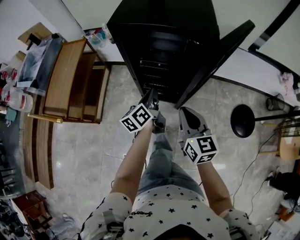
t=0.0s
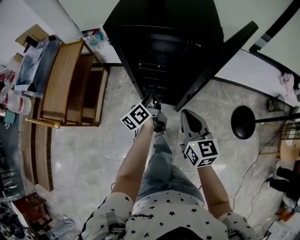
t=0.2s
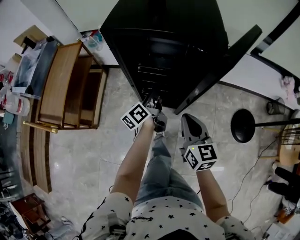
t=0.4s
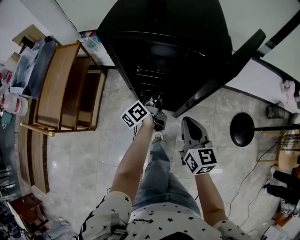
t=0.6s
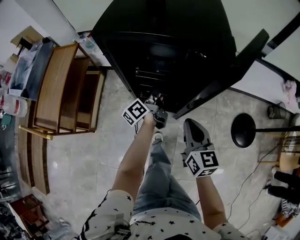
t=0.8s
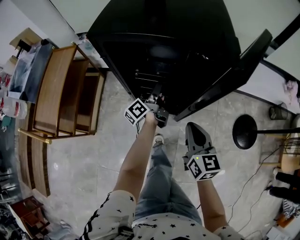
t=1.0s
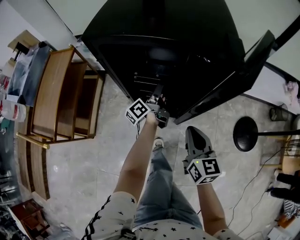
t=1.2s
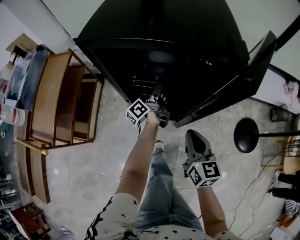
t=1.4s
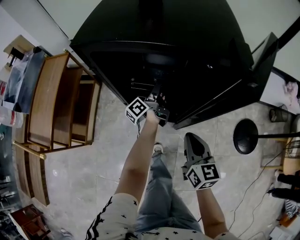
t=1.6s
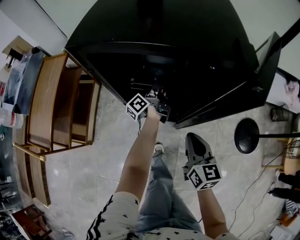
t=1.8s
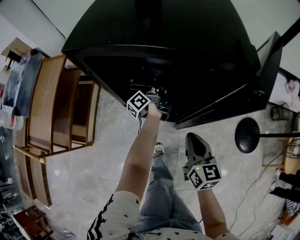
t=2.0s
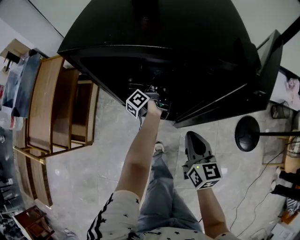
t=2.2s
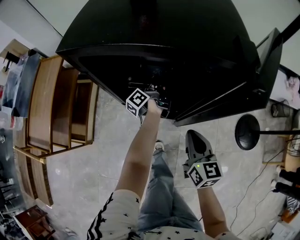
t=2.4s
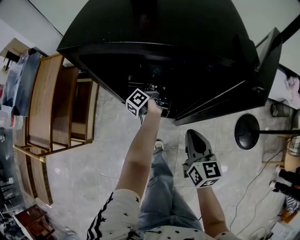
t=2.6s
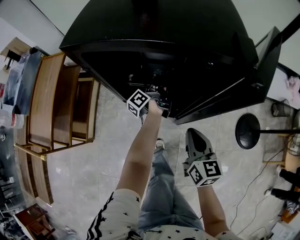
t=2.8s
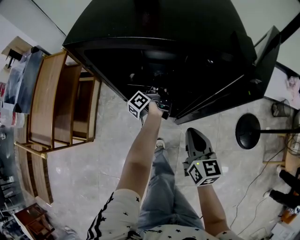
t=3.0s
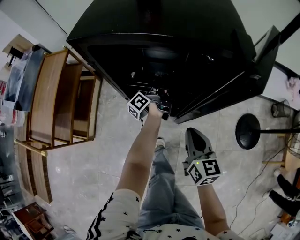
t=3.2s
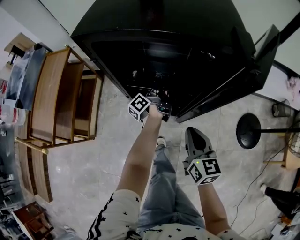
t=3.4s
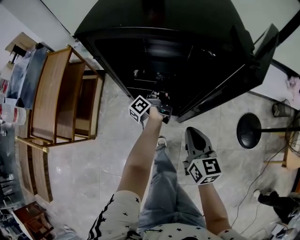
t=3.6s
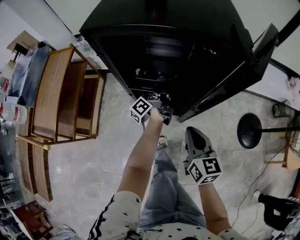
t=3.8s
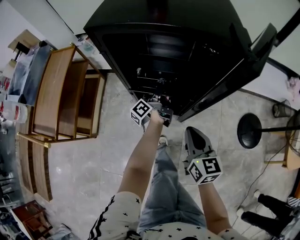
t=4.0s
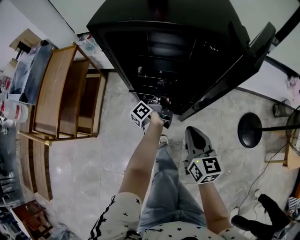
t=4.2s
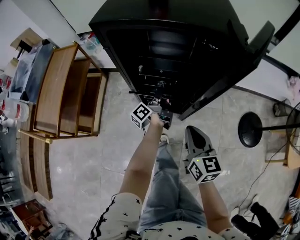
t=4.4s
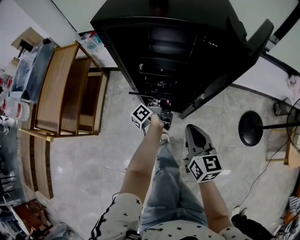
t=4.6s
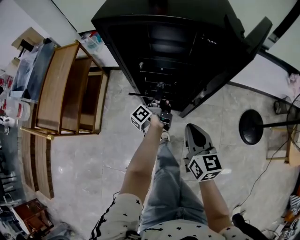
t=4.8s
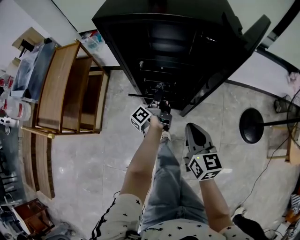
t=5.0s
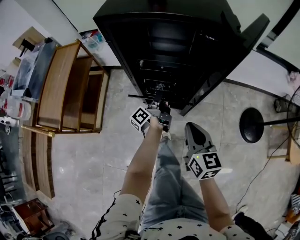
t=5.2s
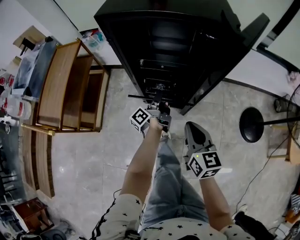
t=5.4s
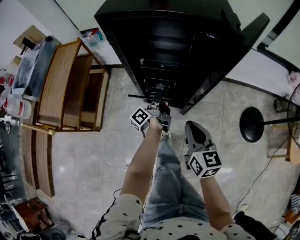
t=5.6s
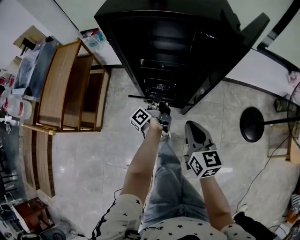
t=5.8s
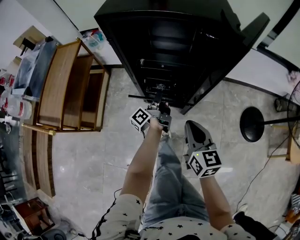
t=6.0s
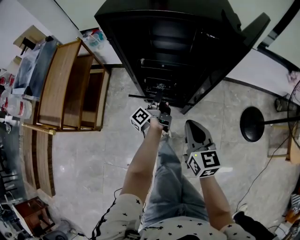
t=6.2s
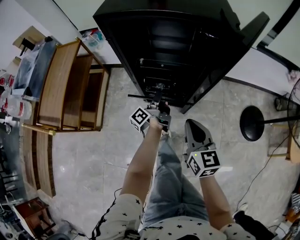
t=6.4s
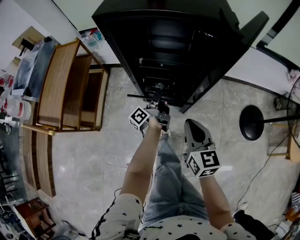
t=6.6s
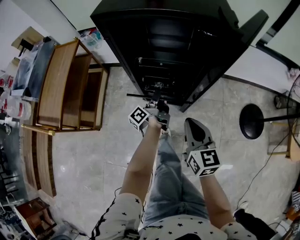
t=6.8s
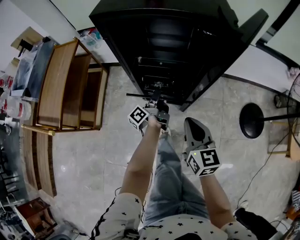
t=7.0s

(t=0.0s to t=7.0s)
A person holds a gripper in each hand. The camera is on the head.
t=0.0s - t=1.4s: The right gripper shifts roughly 15 cm downward and forward. Meanwhile the left gripper is displaced forward and downward by roughly 25 cm, changes its angle by some 30 degrees, and opens.
t=1.4s - t=2.8s: The left gripper shifts about 5 cm forward, and closes.
t=2.8s - t=4.2s: The left gripper heads backward, covering some 10 cm, while the right gripper travels backward by roughly 5 cm.
t=4.2s - t=5.6s: The left gripper shifts about 10 cm backward.
t=5.6s - t=7.0s: Both grippers stay put.

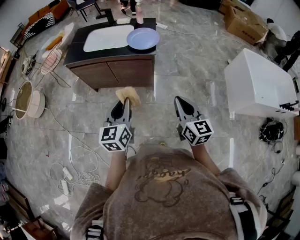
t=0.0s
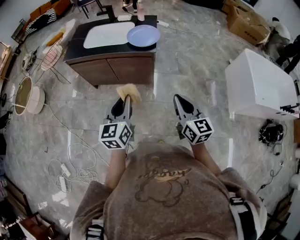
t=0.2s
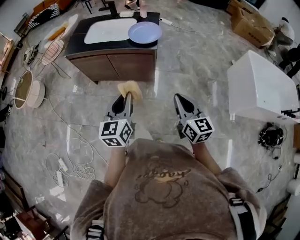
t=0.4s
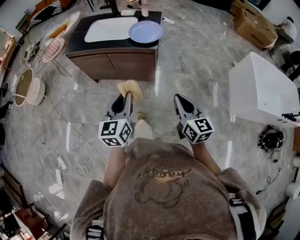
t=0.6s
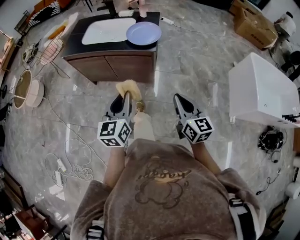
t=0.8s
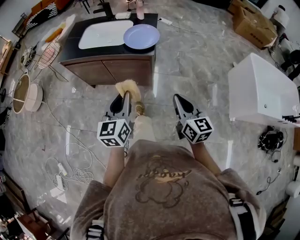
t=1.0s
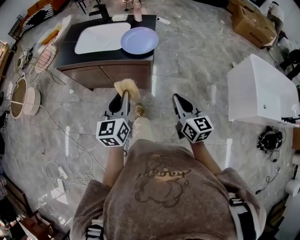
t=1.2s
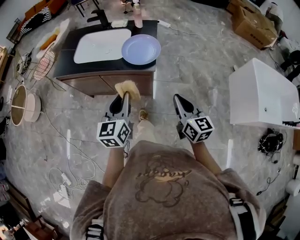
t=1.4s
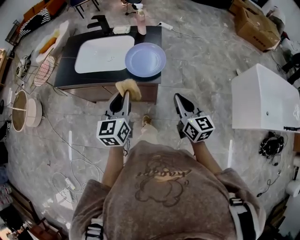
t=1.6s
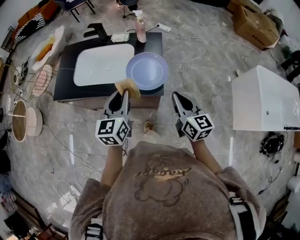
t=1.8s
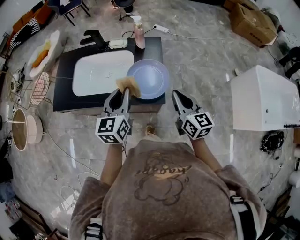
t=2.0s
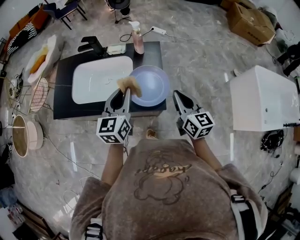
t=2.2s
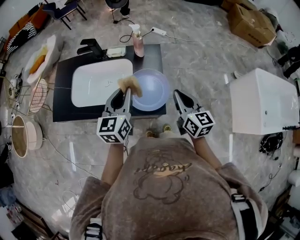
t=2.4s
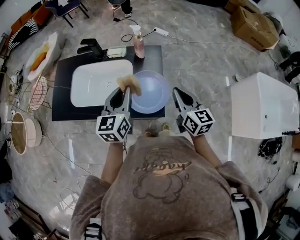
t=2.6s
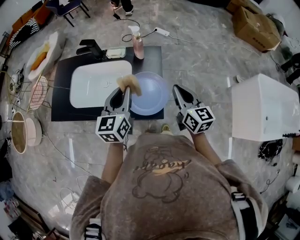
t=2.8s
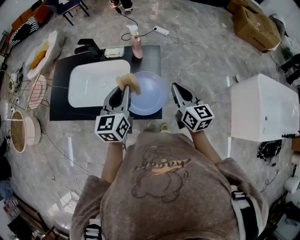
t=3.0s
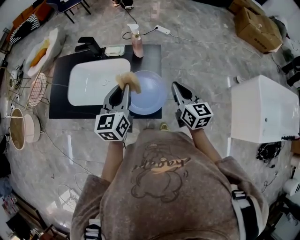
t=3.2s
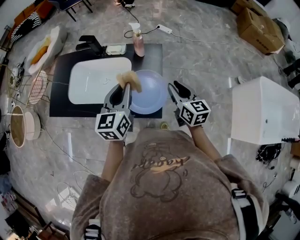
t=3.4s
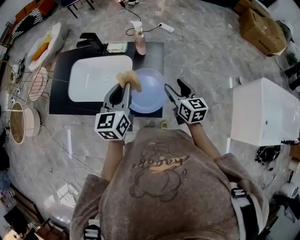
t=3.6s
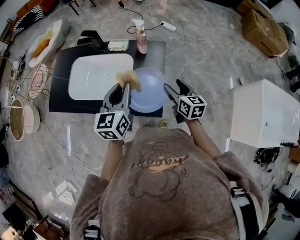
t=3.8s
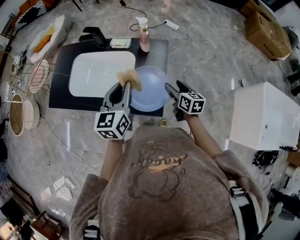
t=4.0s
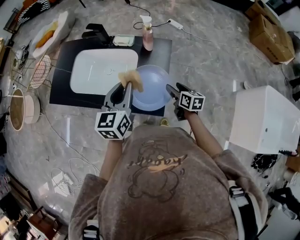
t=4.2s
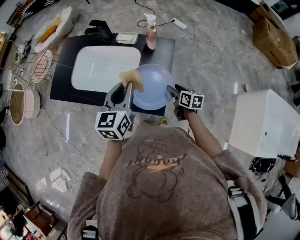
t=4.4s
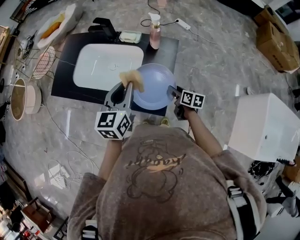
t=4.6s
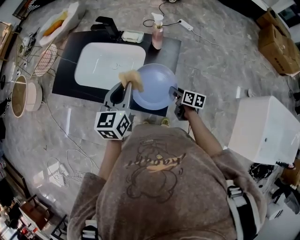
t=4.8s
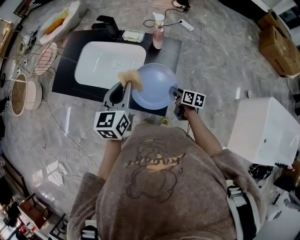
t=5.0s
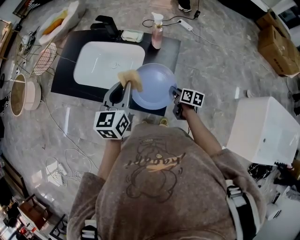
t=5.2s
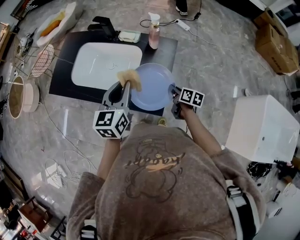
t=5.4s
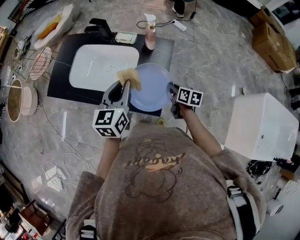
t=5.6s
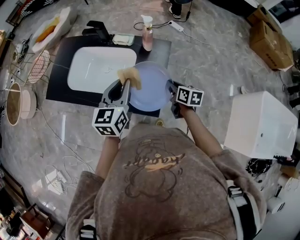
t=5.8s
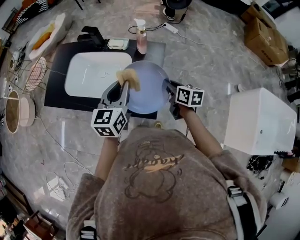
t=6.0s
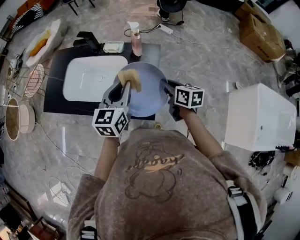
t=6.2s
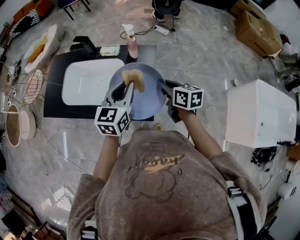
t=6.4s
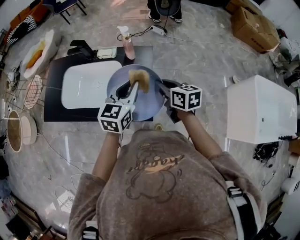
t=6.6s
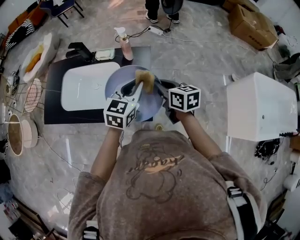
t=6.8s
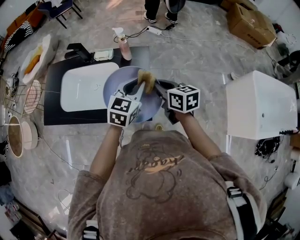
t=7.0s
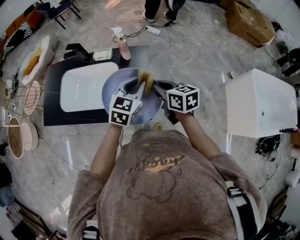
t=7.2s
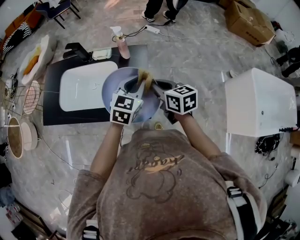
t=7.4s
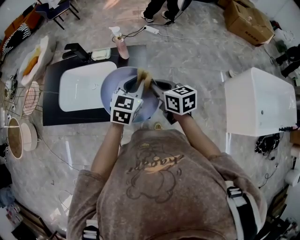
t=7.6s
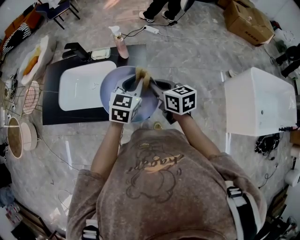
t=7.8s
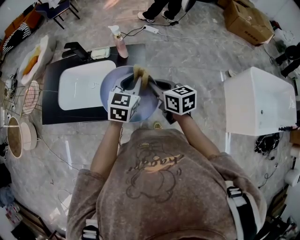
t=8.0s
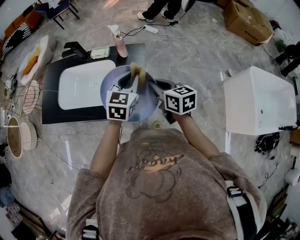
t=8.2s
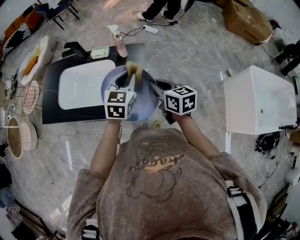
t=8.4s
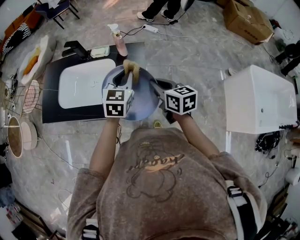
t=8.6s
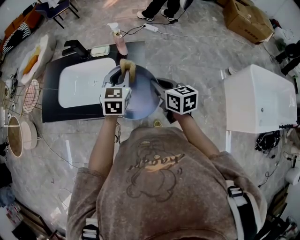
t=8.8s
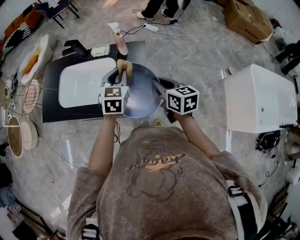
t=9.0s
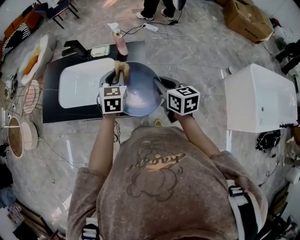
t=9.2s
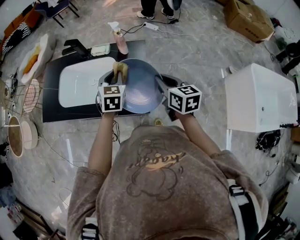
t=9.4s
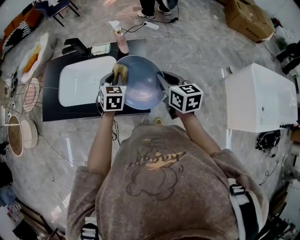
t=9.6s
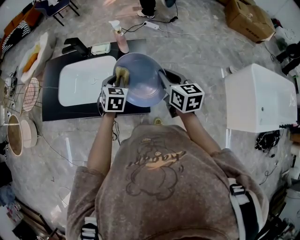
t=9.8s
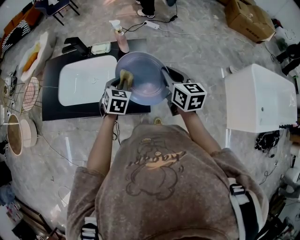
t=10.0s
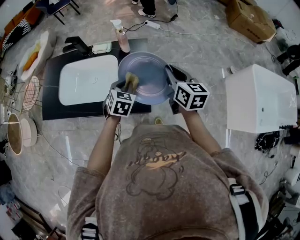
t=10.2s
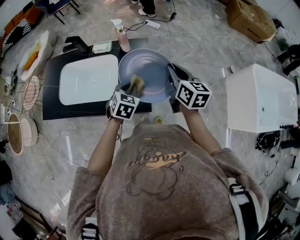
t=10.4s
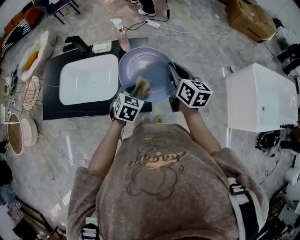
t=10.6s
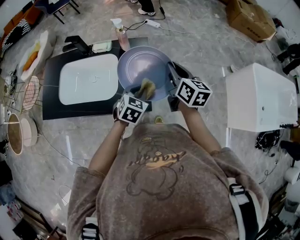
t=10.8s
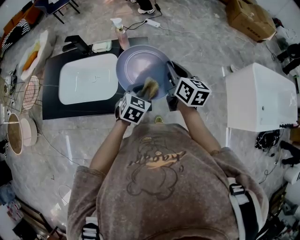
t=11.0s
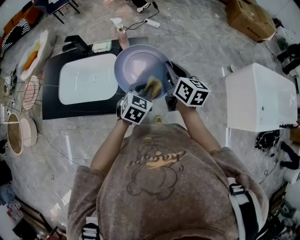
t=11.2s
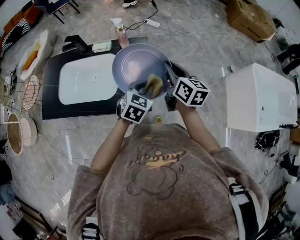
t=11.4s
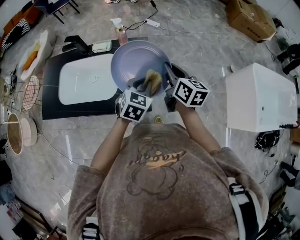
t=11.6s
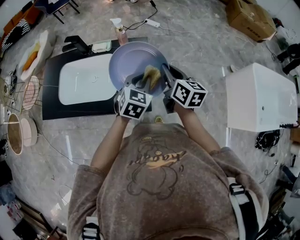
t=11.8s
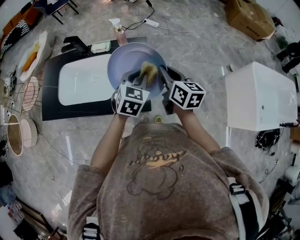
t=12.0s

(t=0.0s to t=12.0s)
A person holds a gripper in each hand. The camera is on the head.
t=0.0s - t=1.6s: Both grippers travel together forward, approximately 35 cm.
t=1.6s - t=3.0s: The two grippers go about 25 cm forward.
t=3.0s - t=4.4s: The right gripper shifts some 20 cm downward, changes its angle by approximately 30 degrees, and opens up.
t=4.4s - t=6.0s: The right gripper heads upward, covering roughly 10 cm, and closes.
t=6.0s - t=7.6s: The left gripper travels to the right by approximately 15 cm, and rotates about 30 degrees. The right gripper is displaced upward by some 10 cm.
t=7.6s - t=9.0s: The left gripper is displaced to the left by some 5 cm.
t=9.0s - t=10.4s: The right gripper goes about 5 cm to the right, while the left gripper travels downward and backward by approximately 10 cm, and swivels about 20 degrees.
t=10.4s - t=12.0s: The left gripper is displaced upward and to the right by about 10 cm.

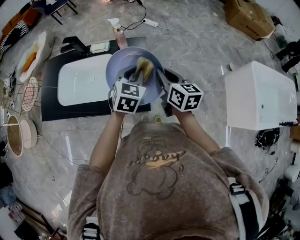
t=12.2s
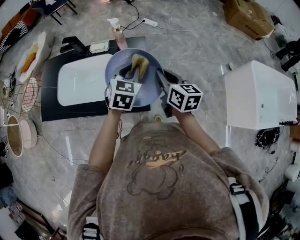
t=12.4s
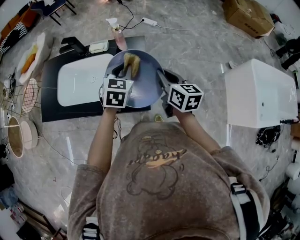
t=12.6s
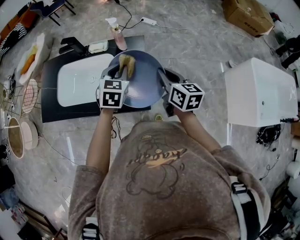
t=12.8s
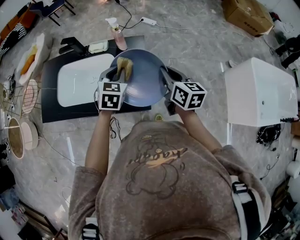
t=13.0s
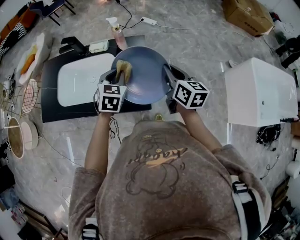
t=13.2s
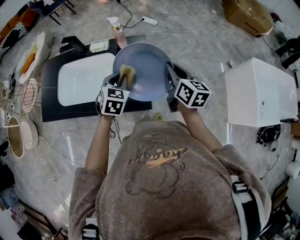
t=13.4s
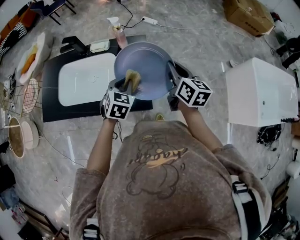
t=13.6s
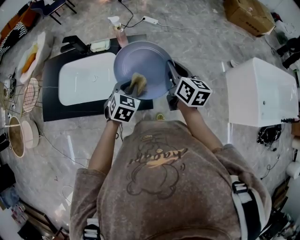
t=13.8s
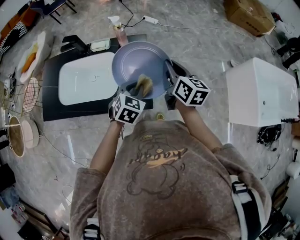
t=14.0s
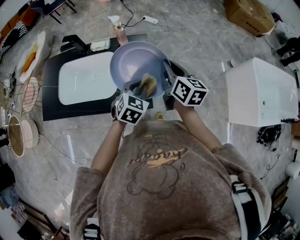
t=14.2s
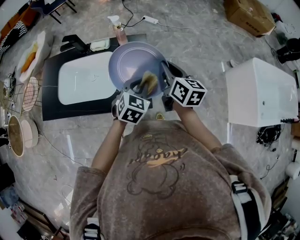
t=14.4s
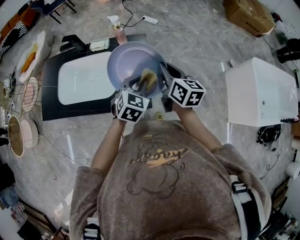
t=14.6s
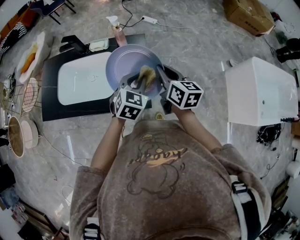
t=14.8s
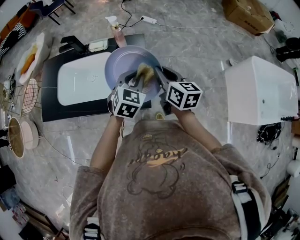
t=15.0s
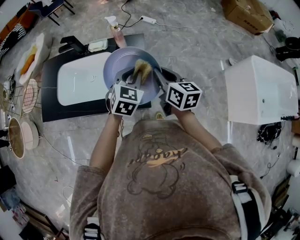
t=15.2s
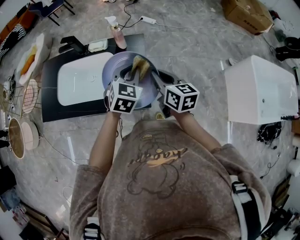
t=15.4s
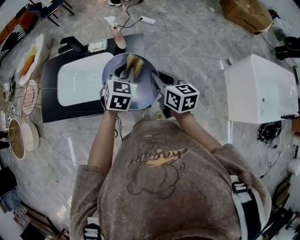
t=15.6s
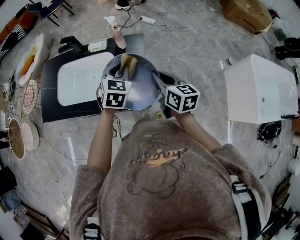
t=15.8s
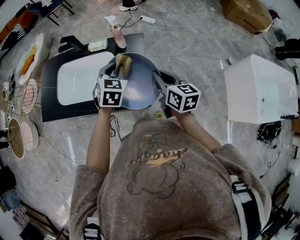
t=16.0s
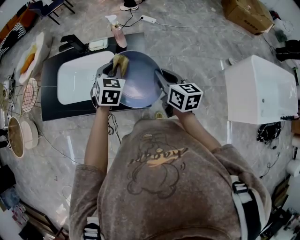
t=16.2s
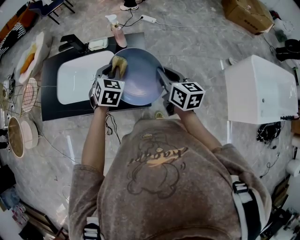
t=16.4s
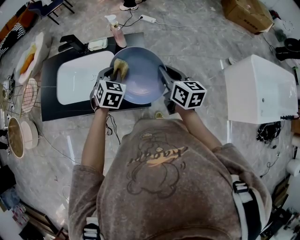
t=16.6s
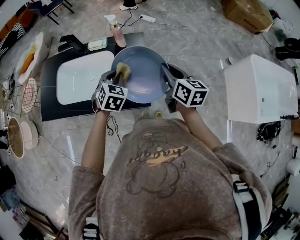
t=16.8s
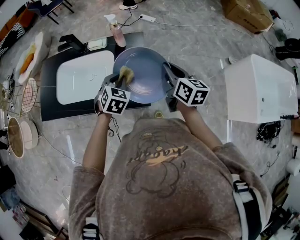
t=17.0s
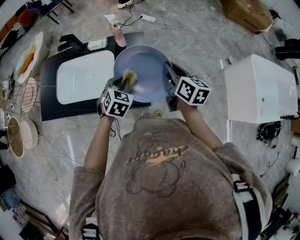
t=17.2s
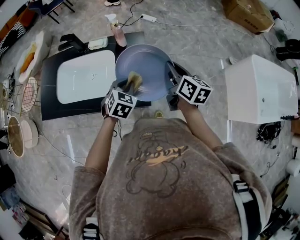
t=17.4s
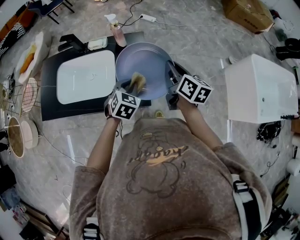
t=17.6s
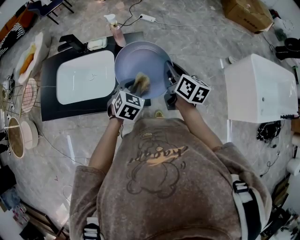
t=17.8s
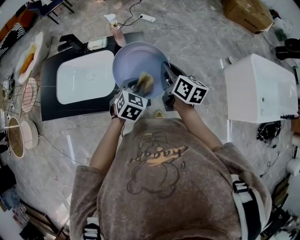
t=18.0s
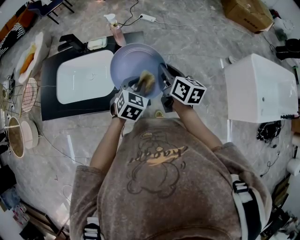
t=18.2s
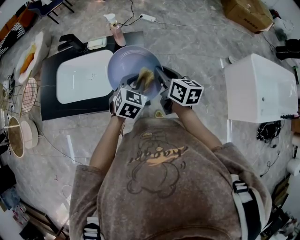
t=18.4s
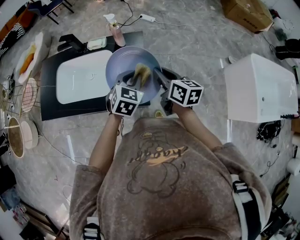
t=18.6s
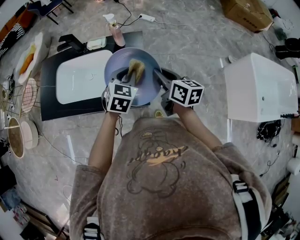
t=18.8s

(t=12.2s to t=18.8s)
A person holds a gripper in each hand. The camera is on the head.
t=12.2s - t=13.8s: The left gripper moves downward, roughly 5 cm.
t=13.8s - t=15.4s: The right gripper heads to the left, covering approximately 5 cm. Meanwhile the left gripper shifts about 5 cm upward.
t=15.4s - t=17.2s: The right gripper is displaced to the right by roughly 5 cm; the left gripper goes about 10 cm downward and to the left.
t=17.2s - t=18.8s: The left gripper ends up some 5 cm from where it was.
